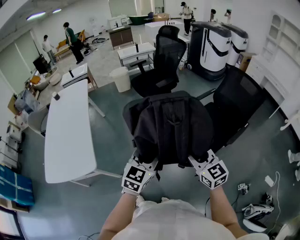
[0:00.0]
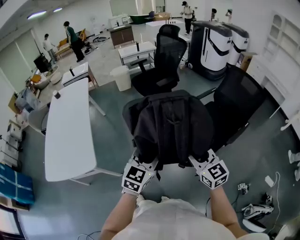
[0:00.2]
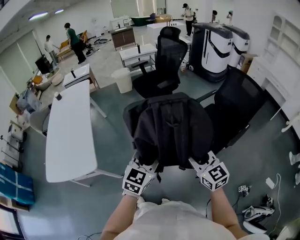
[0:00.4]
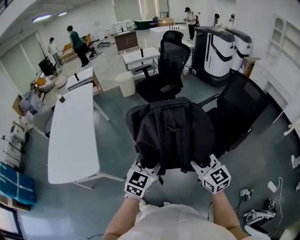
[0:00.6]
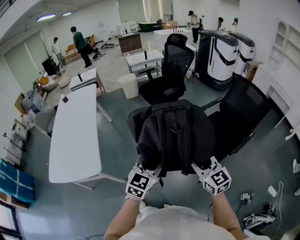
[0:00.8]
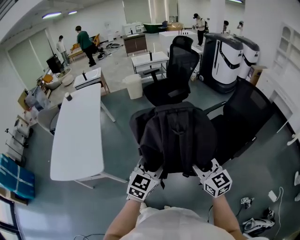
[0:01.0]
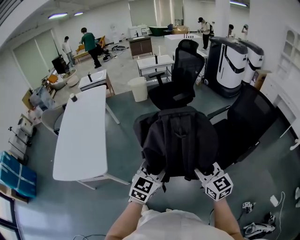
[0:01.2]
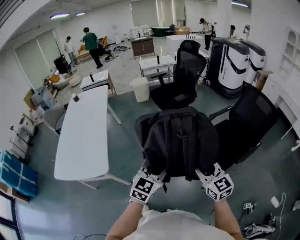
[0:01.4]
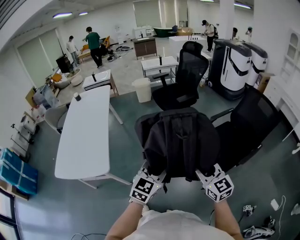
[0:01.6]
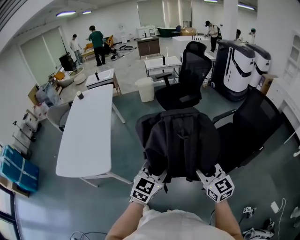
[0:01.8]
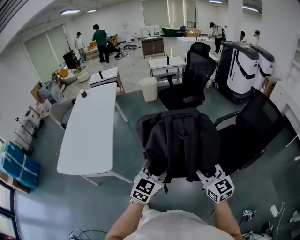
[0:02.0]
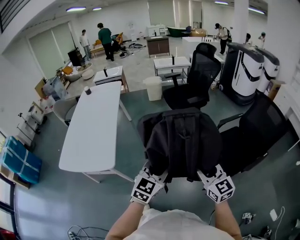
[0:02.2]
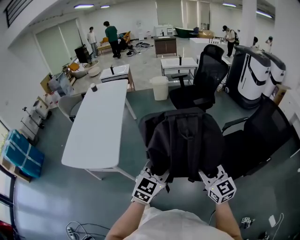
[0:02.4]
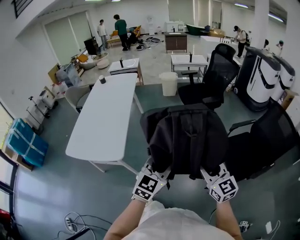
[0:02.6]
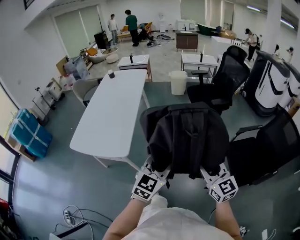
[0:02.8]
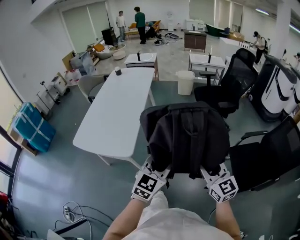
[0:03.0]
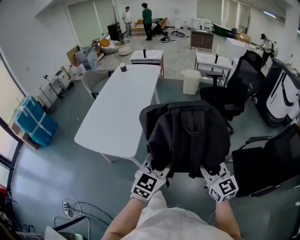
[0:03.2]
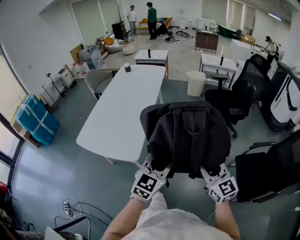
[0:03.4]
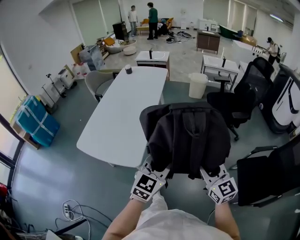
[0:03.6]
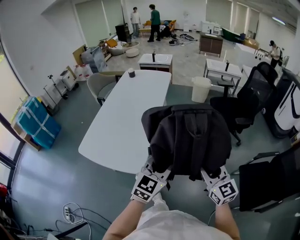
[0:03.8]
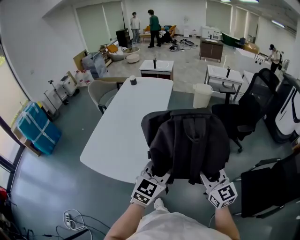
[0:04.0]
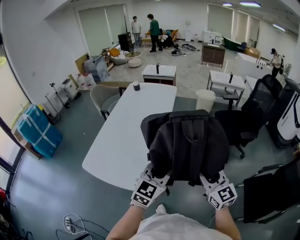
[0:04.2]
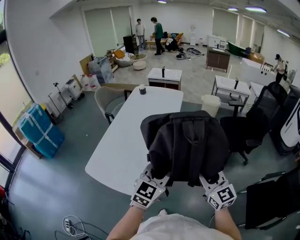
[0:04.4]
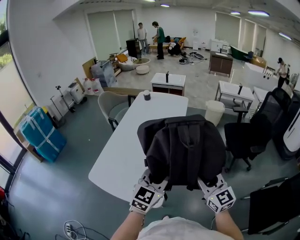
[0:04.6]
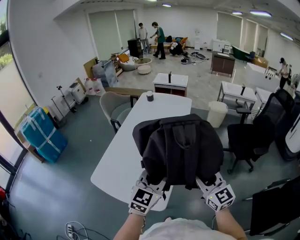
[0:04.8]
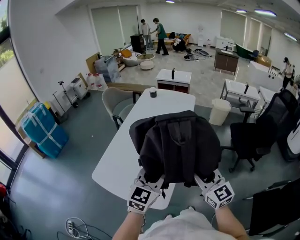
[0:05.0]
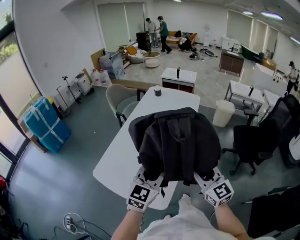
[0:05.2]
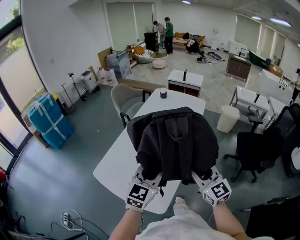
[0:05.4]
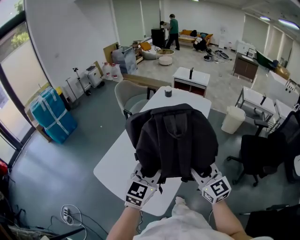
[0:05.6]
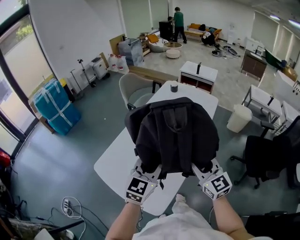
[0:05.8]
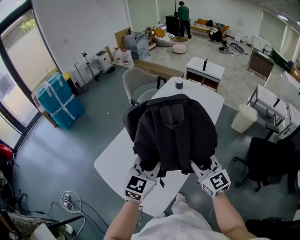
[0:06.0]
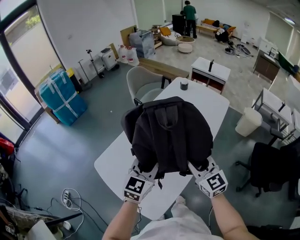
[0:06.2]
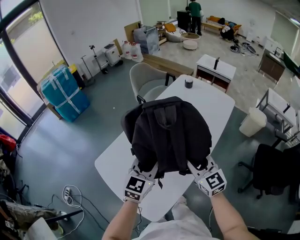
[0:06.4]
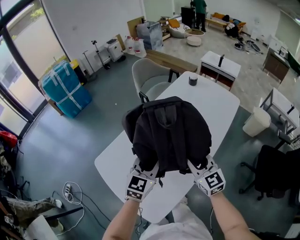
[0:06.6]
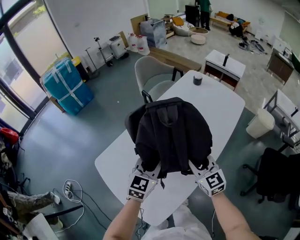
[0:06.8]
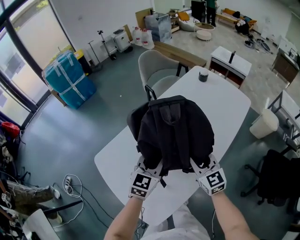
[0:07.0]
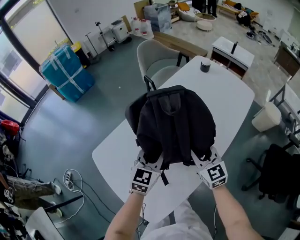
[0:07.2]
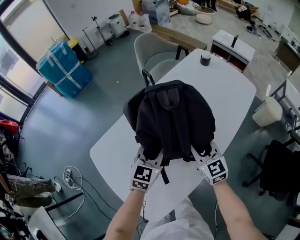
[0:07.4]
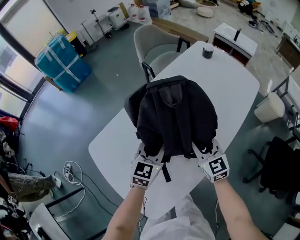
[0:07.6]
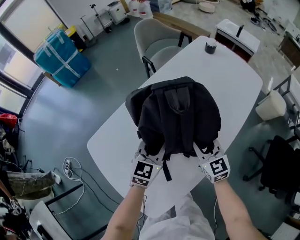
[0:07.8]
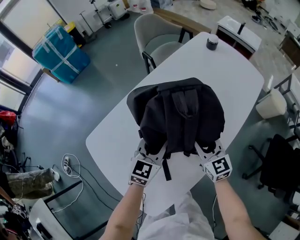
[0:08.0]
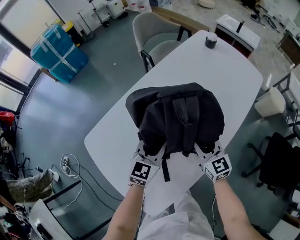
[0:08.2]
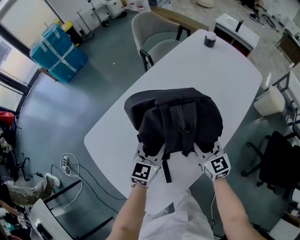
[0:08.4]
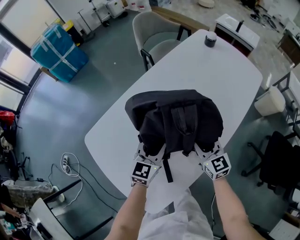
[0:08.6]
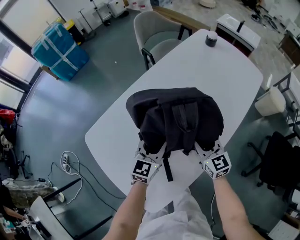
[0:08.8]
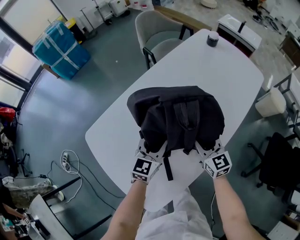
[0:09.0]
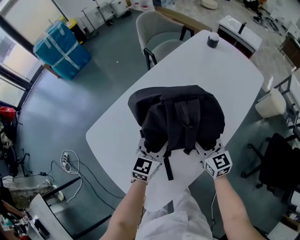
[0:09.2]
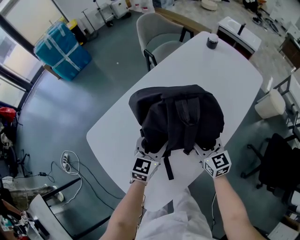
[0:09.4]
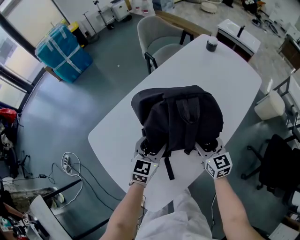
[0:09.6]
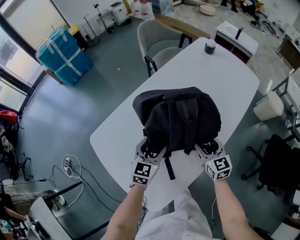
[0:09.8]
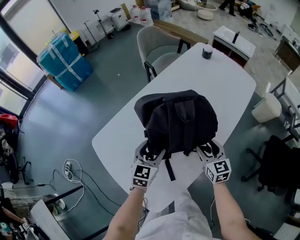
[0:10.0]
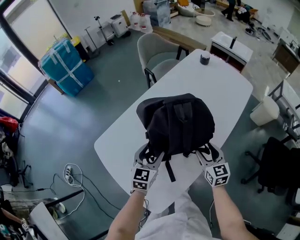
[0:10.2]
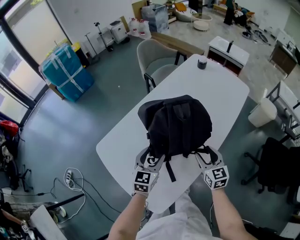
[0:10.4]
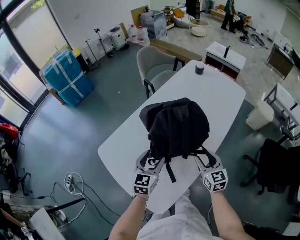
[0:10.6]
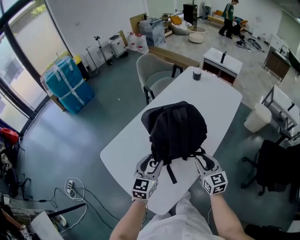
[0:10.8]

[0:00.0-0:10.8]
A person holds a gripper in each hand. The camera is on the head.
0:00.0 to 0:01.6: There are only small adjustments of the grippers.
0:01.6 to 0:03.0: The right gripper goes some 15 cm to the left and forward, while the left gripper travels to the left by some 10 cm.
0:03.0 to 0:04.6: The two grippers go roughly 35 cm forward and to the left.
0:04.6 to 0:06.2: The right gripper ends up some 30 cm from where it was, and rotates about 30 degrees, while the left gripper shifts by some 25 cm, and changes its angle by some 30 degrees.
0:06.2 to 0:07.8: Both grippers move downward and forward, some 20 cm.
0:07.8 to 0:09.2: The left gripper opens.
0:09.2 to 0:10.8: The left gripper is displaced upward and backward by roughly 15 cm. The right gripper is displaced backward and upward by roughly 15 cm.

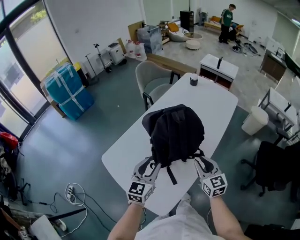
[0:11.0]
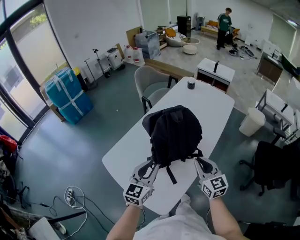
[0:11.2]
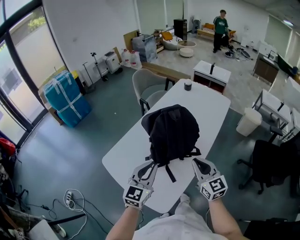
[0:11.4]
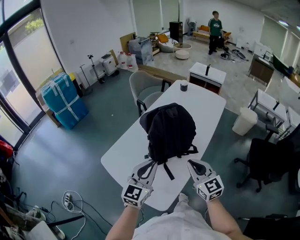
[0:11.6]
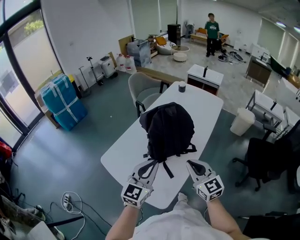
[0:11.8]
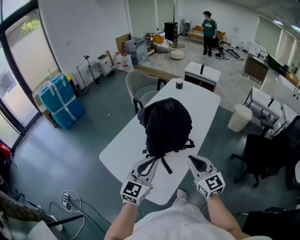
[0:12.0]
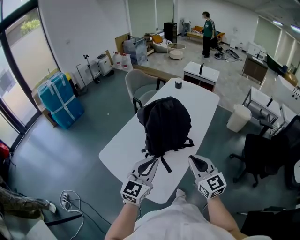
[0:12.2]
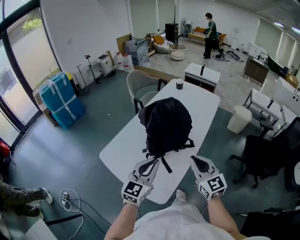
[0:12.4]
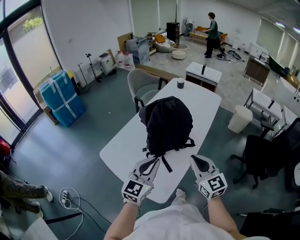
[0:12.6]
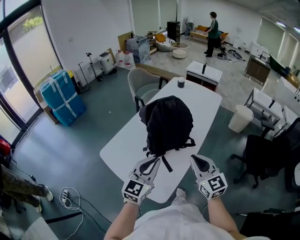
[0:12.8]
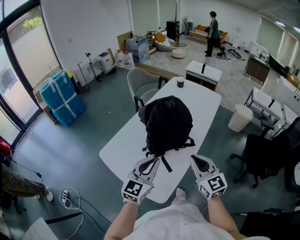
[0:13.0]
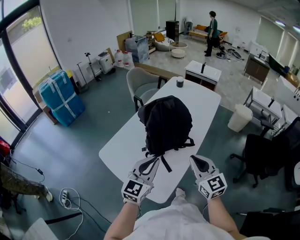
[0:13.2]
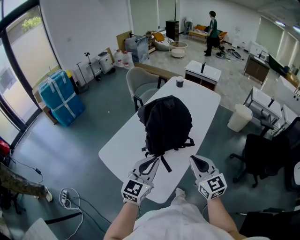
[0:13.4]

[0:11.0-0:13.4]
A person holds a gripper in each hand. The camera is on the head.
0:11.0 to 0:12.2: The grippers both shift backward and upward by roughly 15 cm. The right gripper closes. The left gripper closes its fingers.
0:12.2 to 0:13.4: Both grippers stay put.

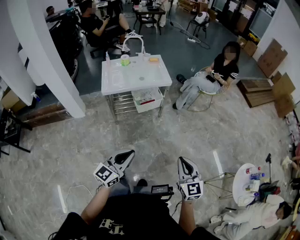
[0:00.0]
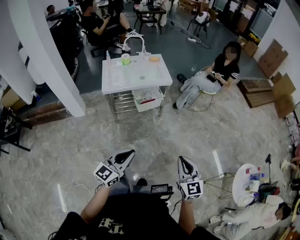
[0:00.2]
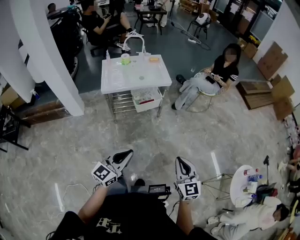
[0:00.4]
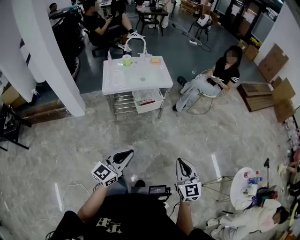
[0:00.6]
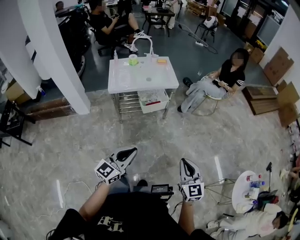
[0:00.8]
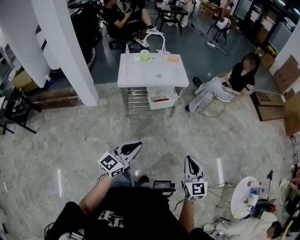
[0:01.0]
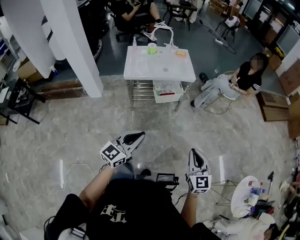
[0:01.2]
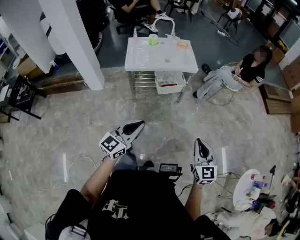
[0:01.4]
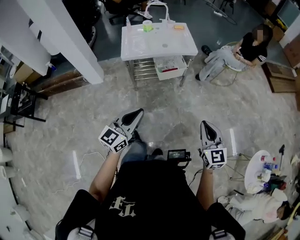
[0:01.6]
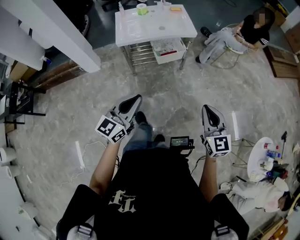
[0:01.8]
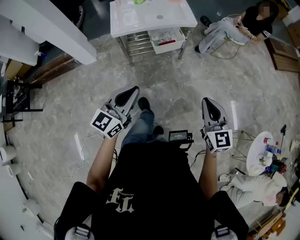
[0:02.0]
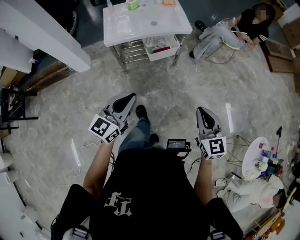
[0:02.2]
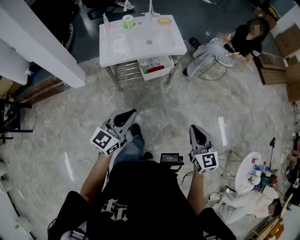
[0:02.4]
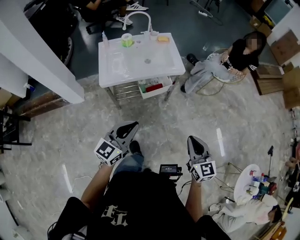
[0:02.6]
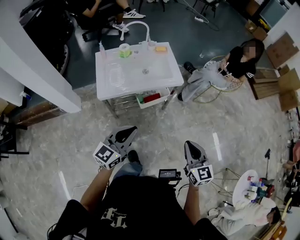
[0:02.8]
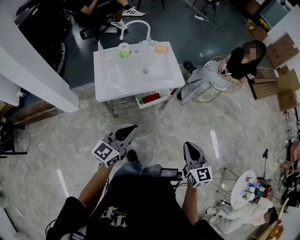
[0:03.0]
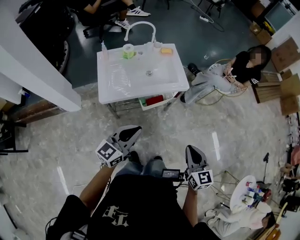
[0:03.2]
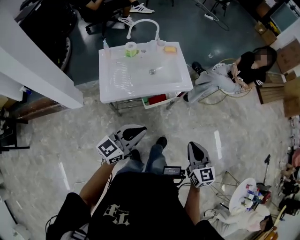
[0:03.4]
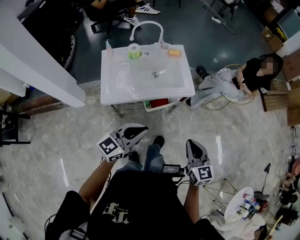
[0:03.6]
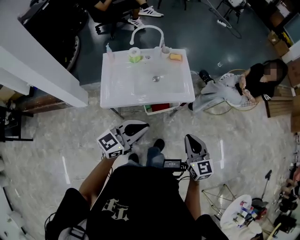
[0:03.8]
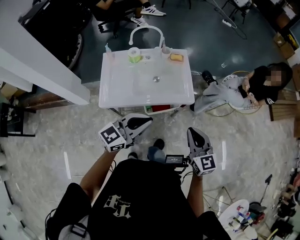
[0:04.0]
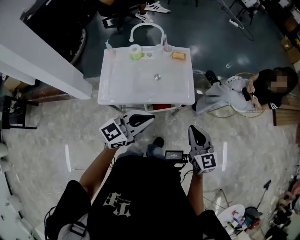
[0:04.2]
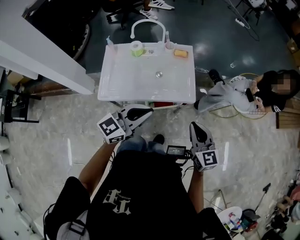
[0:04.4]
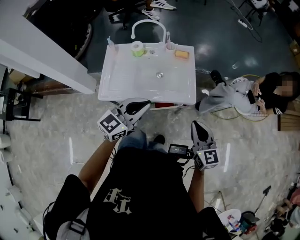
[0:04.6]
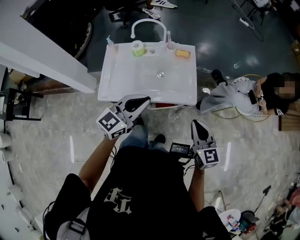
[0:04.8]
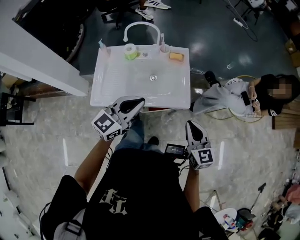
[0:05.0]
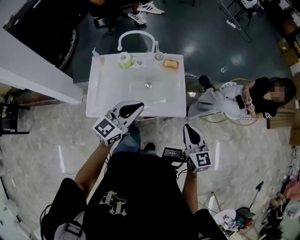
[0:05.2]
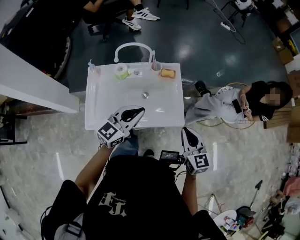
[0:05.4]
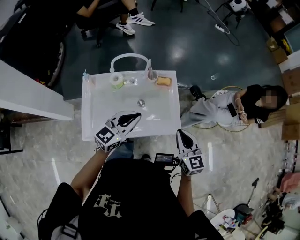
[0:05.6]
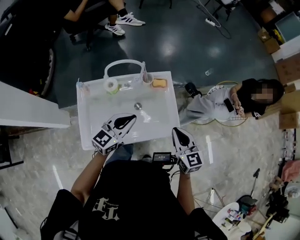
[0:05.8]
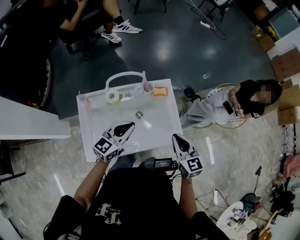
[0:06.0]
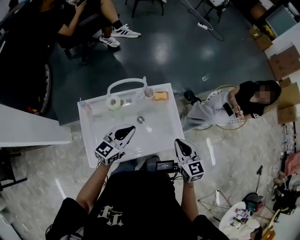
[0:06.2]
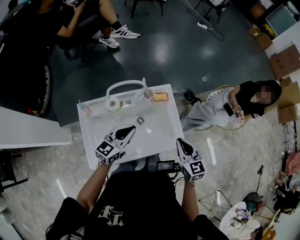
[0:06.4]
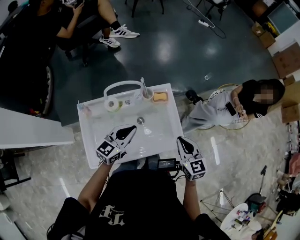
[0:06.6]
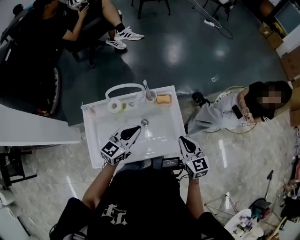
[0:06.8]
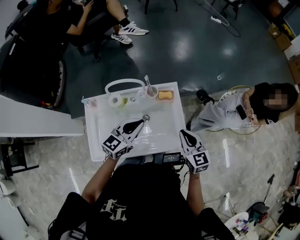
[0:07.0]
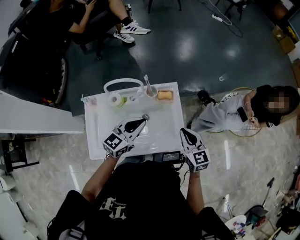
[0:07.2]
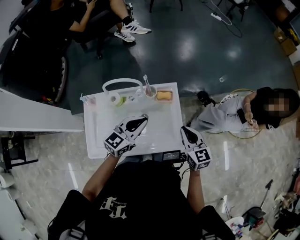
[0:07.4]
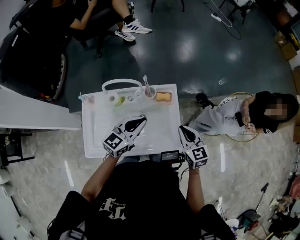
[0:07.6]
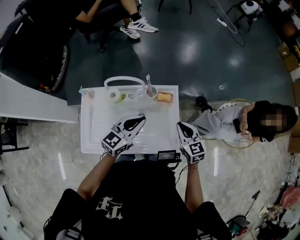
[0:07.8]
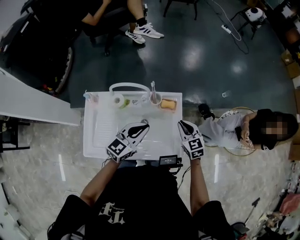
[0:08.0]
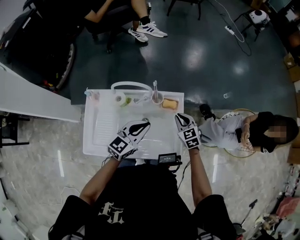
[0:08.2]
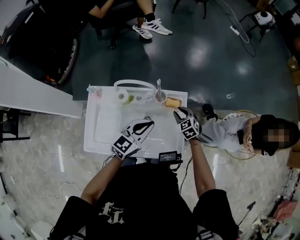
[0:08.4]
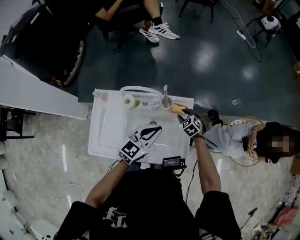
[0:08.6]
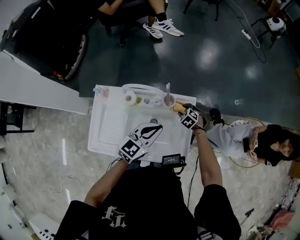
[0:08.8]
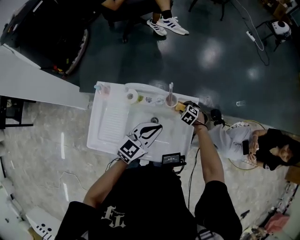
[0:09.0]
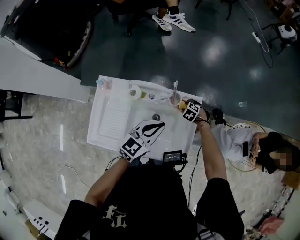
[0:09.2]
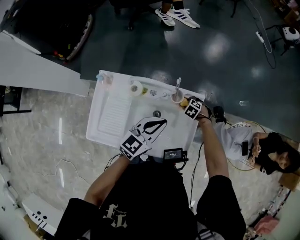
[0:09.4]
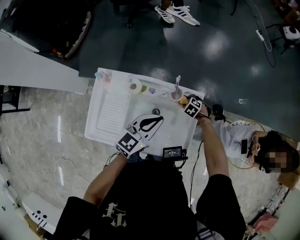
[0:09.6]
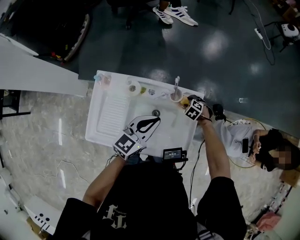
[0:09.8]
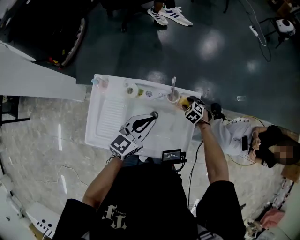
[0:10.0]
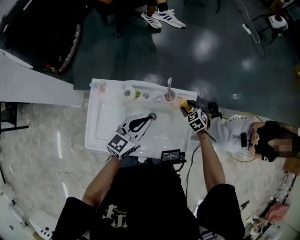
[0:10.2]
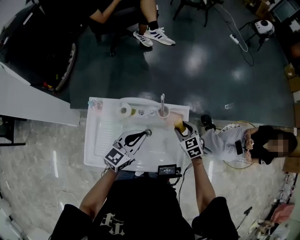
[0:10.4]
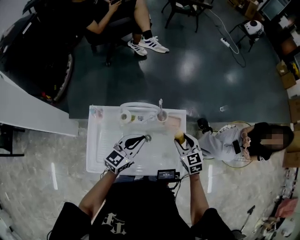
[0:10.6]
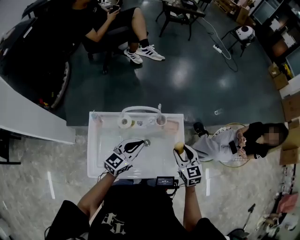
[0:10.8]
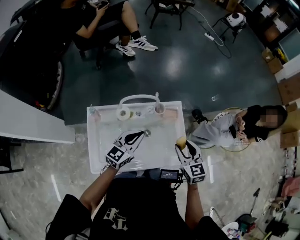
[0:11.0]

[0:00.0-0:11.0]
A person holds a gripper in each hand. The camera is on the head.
0:00.0 to 0:01.6: The right gripper heads forward, covering roughly 5 cm, while the left gripper is displaced to the left by approximately 5 cm.
0:01.6 to 0:03.2: Both grippers travel together forward, roughly 30 cm.
0:03.2 to 0:04.8: Both grippers move forward, some 30 cm.
0:04.8 to 0:06.2: Both grippers travel together forward and to the left, approximately 25 cm.
0:06.2 to 0:07.8: The right gripper is displaced forward by approximately 15 cm; the left gripper goes some 10 cm to the right and forward.
0:07.8 to 0:09.4: The right gripper heads downward, covering roughly 25 cm, points its fingers about 50 degrees further downward, and opens. Meanwhile the left gripper ends up about 5 cm from where it was.
0:09.4 to 0:11.0: The right gripper travels upward by roughly 30 cm, and tips its fingers upward by roughly 50 degrees. Meanwhile the left gripper moves roughly 10 cm.
